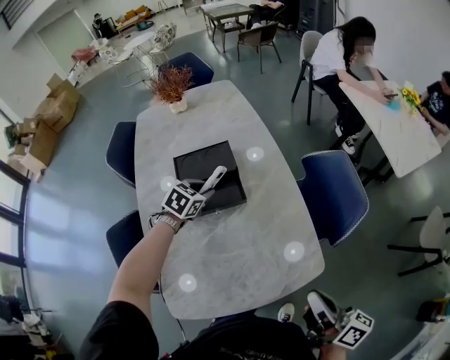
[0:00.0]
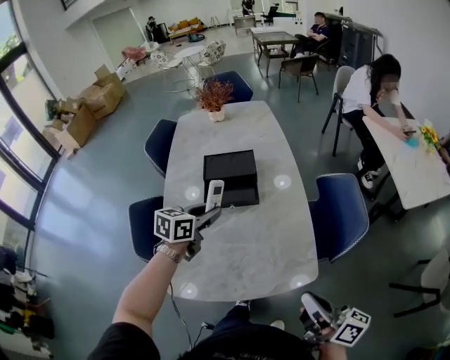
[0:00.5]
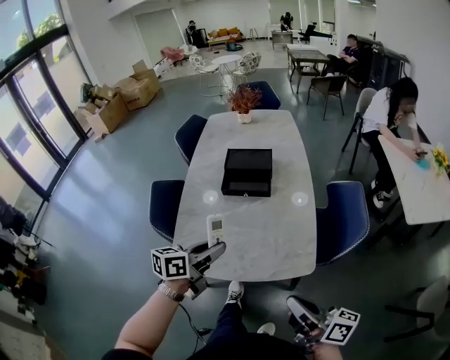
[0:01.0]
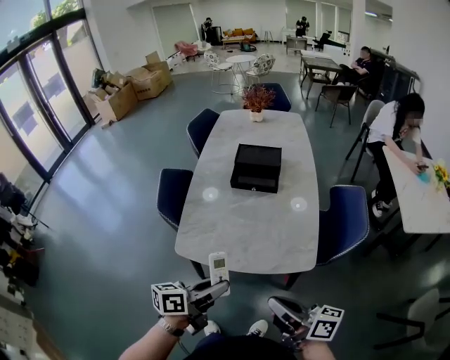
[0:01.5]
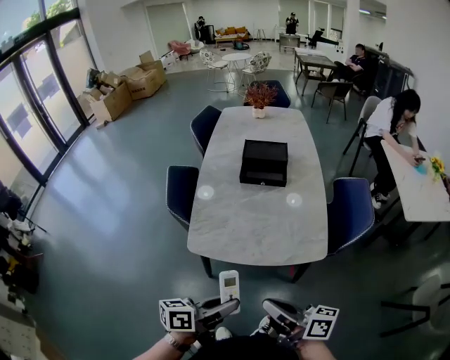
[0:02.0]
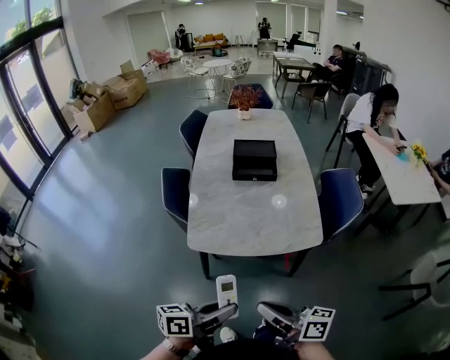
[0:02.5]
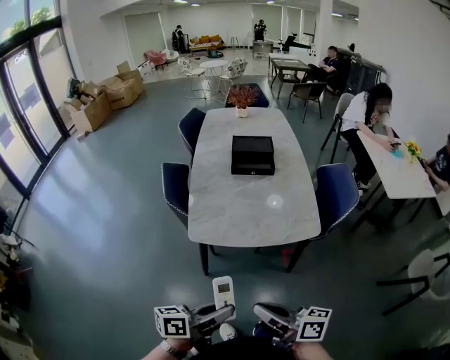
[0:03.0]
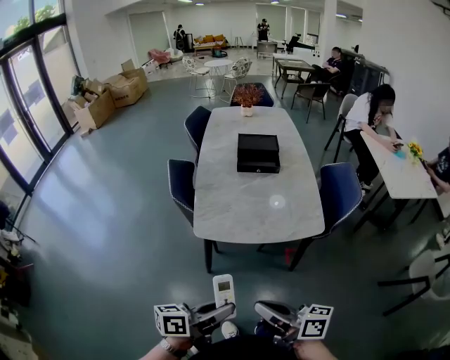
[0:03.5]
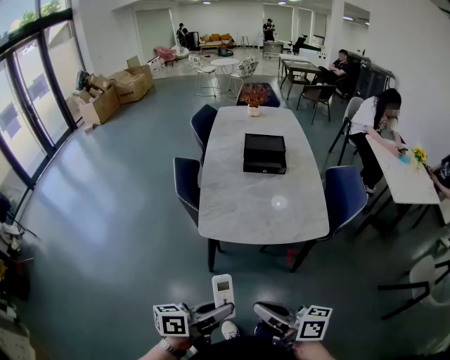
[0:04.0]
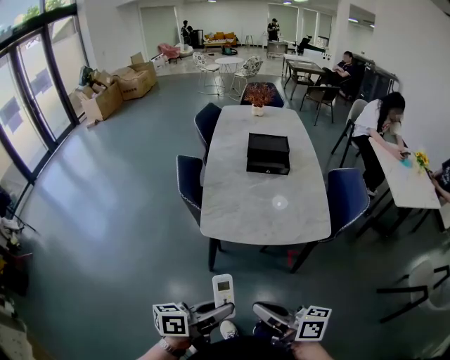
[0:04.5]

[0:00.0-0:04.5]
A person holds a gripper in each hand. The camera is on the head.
0:00.0 to 0:02.0: The right gripper changes place by roughly 25 cm, and turns by some 40 degrees; the left gripper ends up some 60 cm from where it was, and angles its fingers upward, by about 40 degrees.
0:02.0 to 0:04.5: The two grippers go about 15 cm backward and to the left.

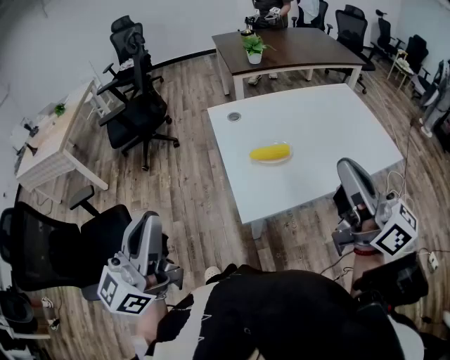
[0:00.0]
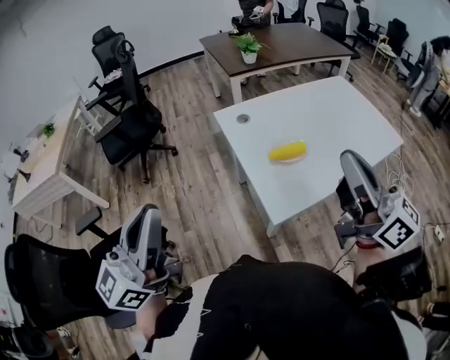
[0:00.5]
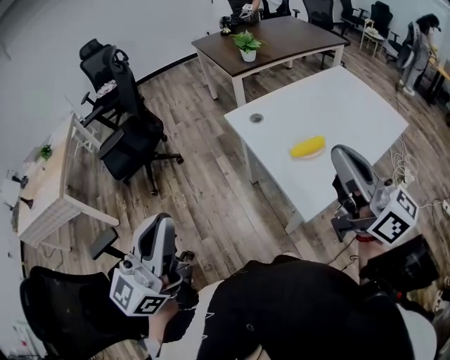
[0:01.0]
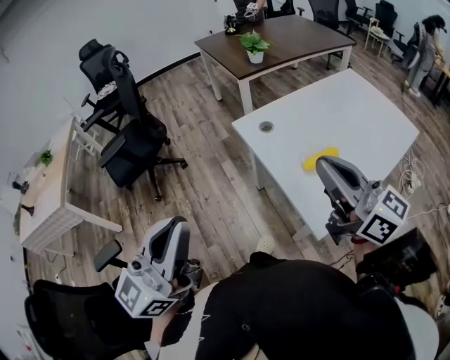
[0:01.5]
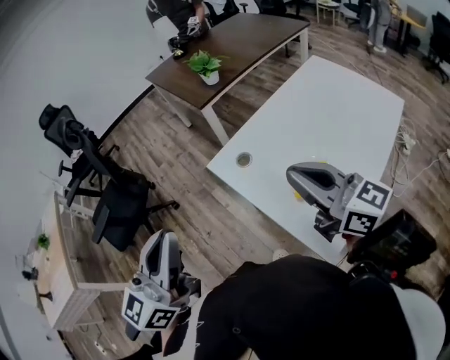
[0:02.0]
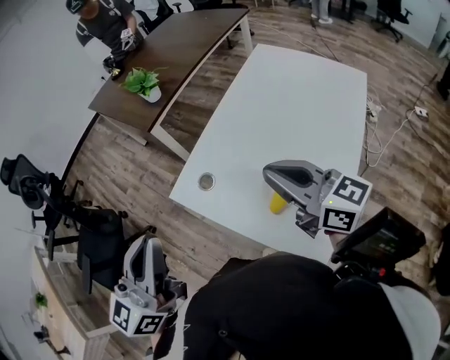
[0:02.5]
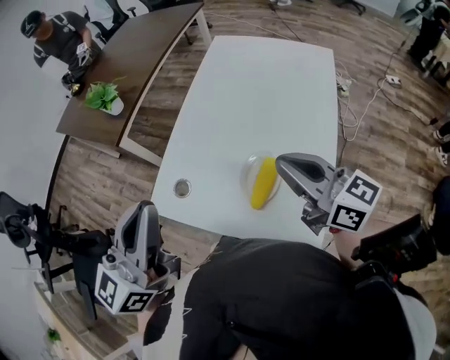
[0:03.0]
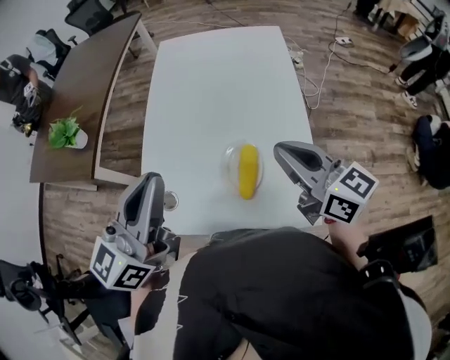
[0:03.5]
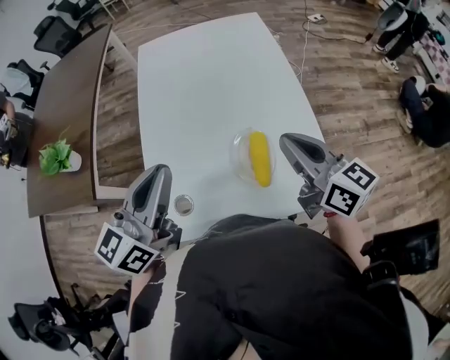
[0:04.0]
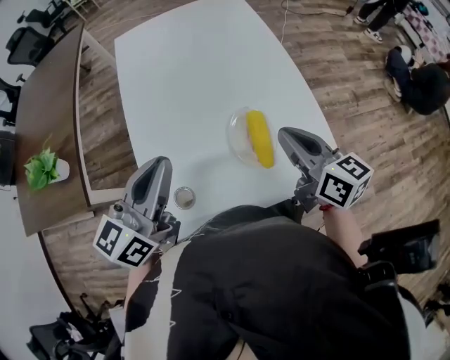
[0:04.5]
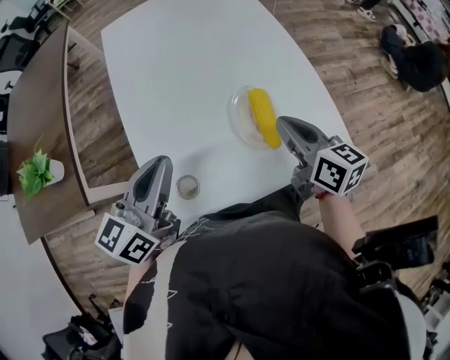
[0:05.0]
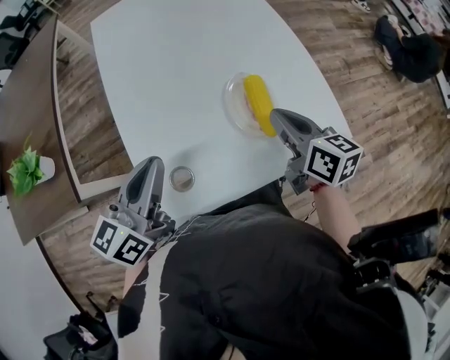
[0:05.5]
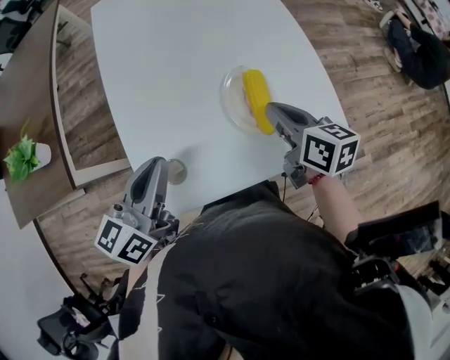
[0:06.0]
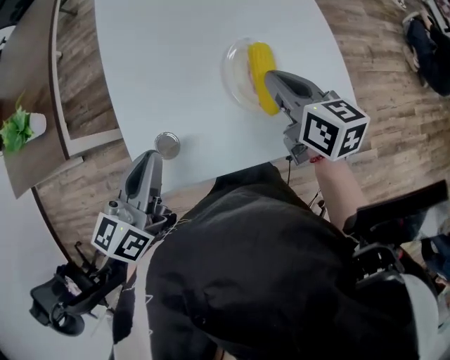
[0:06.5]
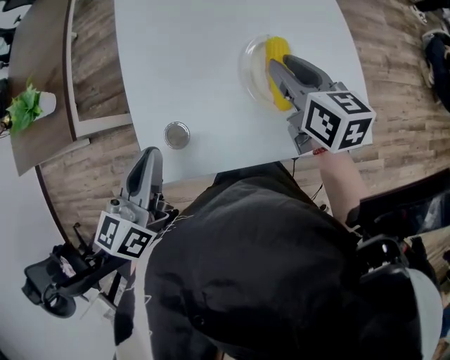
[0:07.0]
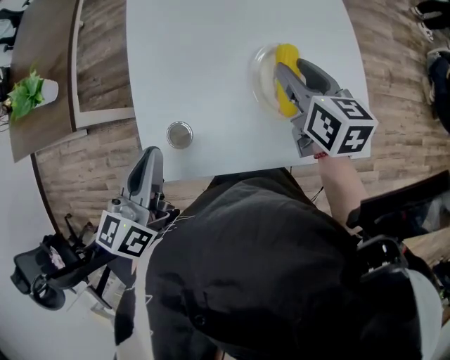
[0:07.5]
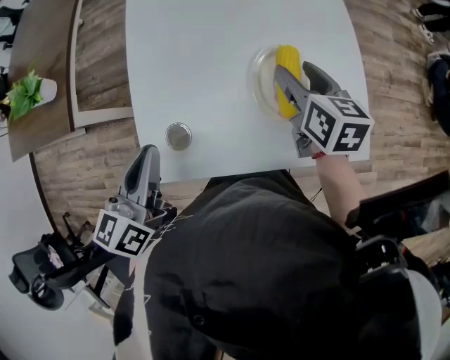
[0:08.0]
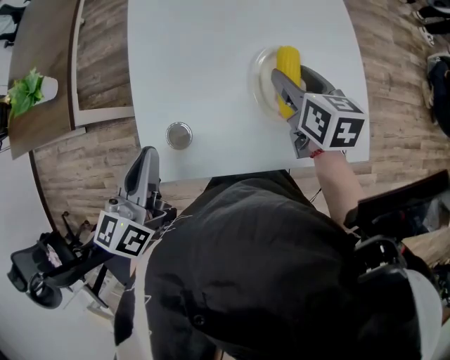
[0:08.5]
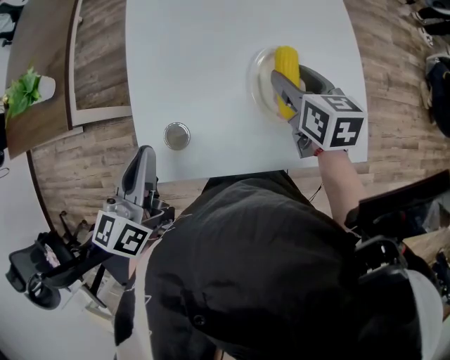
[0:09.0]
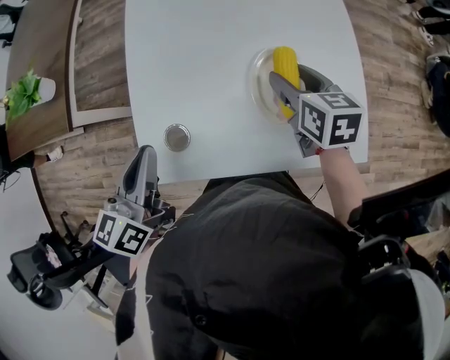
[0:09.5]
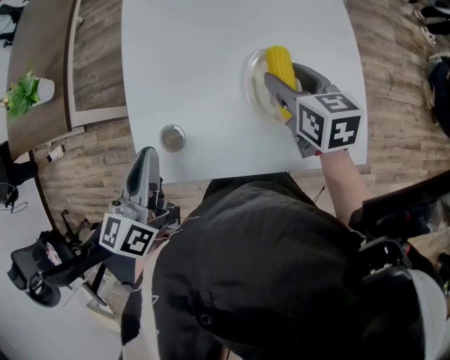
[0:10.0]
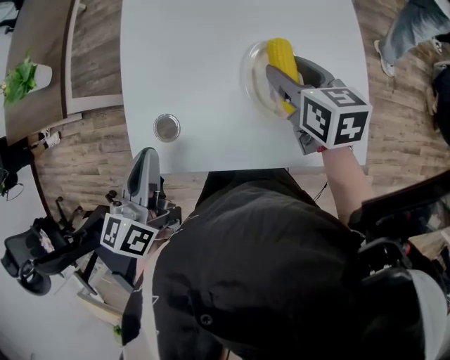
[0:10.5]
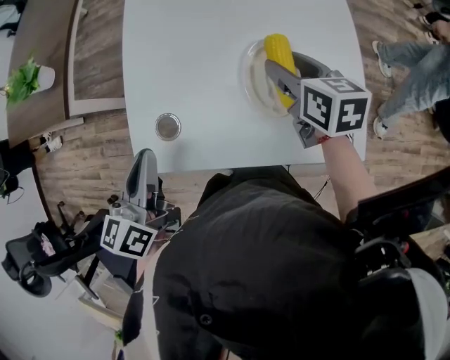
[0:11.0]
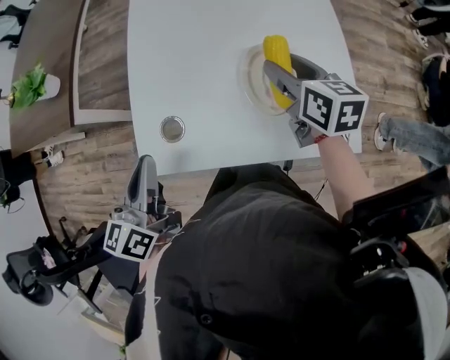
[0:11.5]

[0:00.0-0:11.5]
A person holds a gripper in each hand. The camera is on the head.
0:00.0 to 0:02.0: The two grippers go approximately 35 cm forward and to the left. The left gripper swivels some 20 degrees, while the right gripper turns by about 20 degrees.
0:02.0 to 0:04.0: The right gripper moves some 15 cm, and swivels about 70 degrees. Meanwhile the left gripper changes place by approximately 35 cm, and turns by about 70 degrees.
0:04.0 to 0:06.0: Both grippers move downward, about 15 cm. The right gripper turns by approximately 30 degrees.
0:06.0 to 0:07.5: The left gripper shifts by roughly 5 cm, and swivels about 20 degrees, while the right gripper shifts approximately 5 cm forward, and opens up.
0:07.5 to 0:09.5: The grippers stay close to where they were, moving slightly.
0:09.5 to 0:11.5: The left gripper shifts some 5 cm backward.

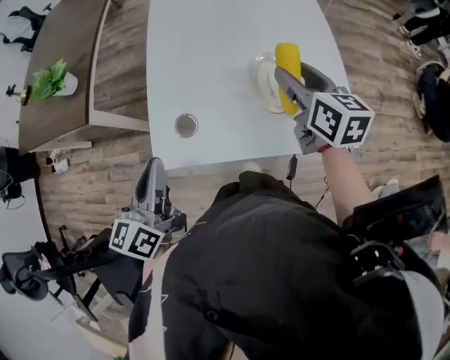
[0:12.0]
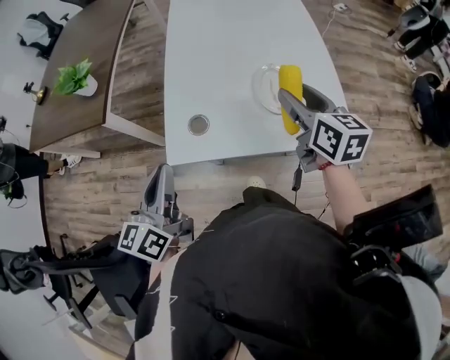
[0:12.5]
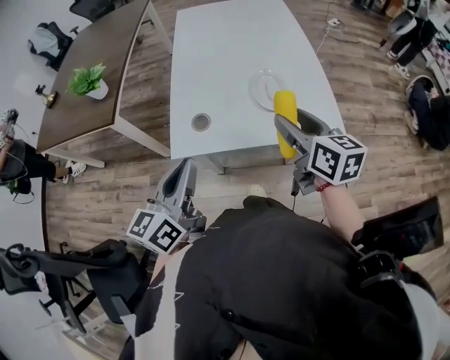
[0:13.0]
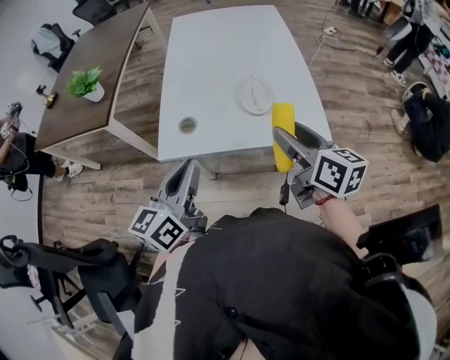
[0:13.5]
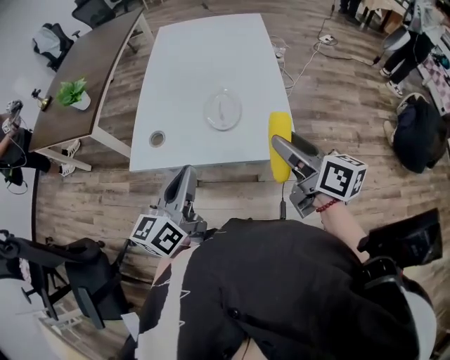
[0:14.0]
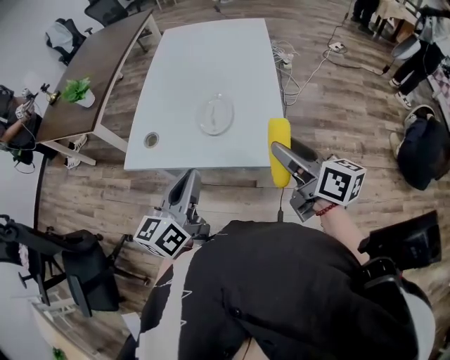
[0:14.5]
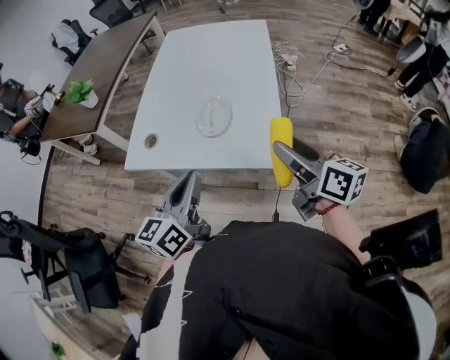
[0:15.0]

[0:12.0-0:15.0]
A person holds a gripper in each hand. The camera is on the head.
0:12.0 to 0:13.5: The right gripper is displaced backward by some 20 cm. The left gripper travels backward and to the right by some 15 cm.
0:13.5 to 0:15.0: Both grippers travel together to the right, approximately 20 cm.

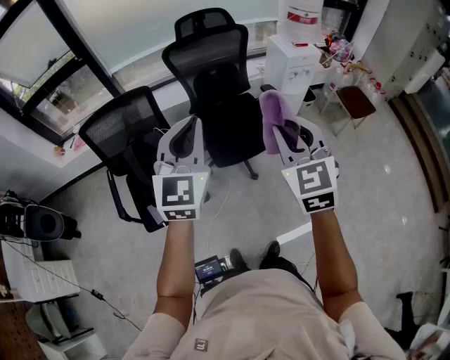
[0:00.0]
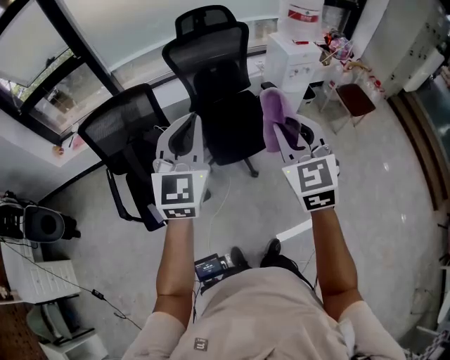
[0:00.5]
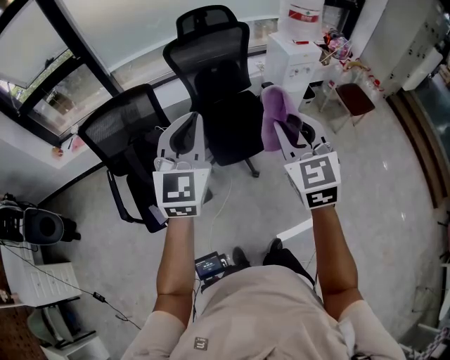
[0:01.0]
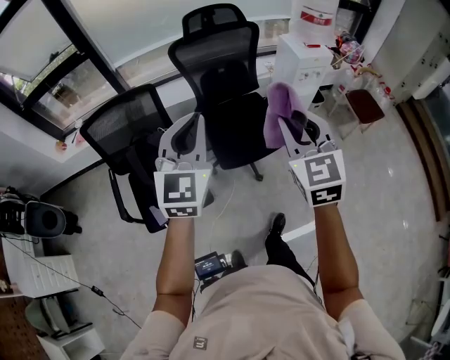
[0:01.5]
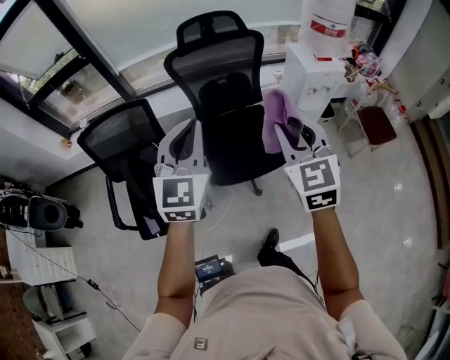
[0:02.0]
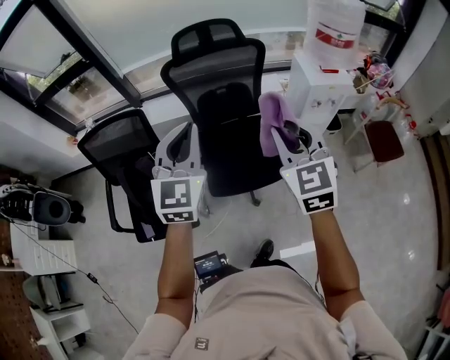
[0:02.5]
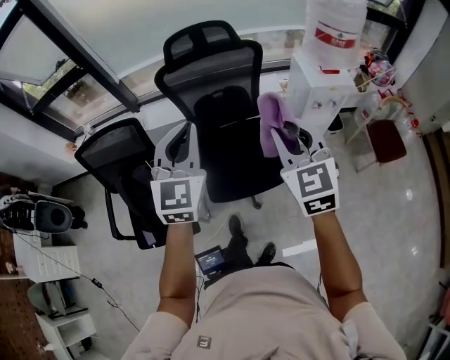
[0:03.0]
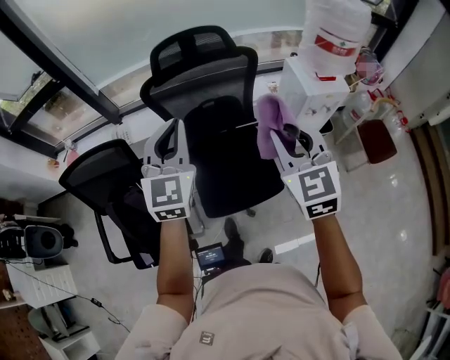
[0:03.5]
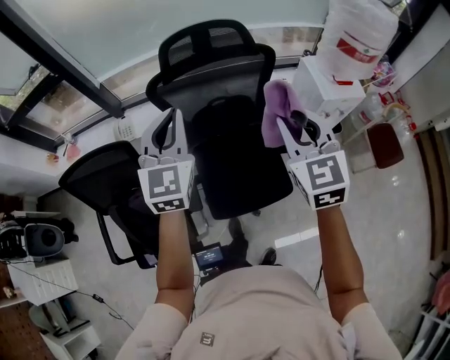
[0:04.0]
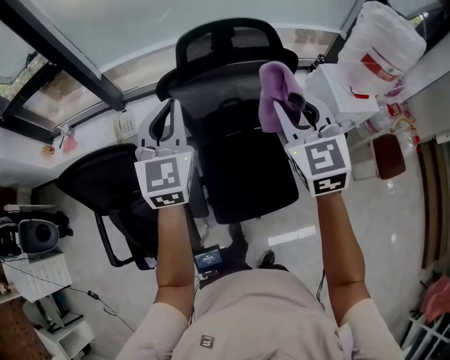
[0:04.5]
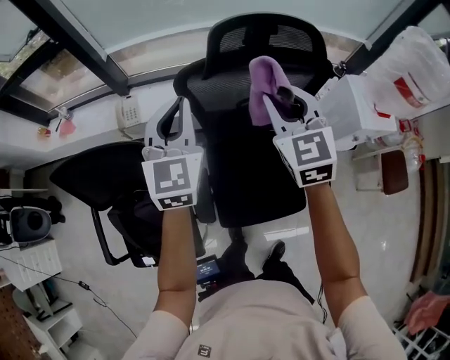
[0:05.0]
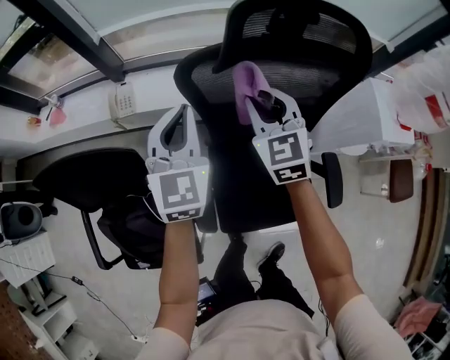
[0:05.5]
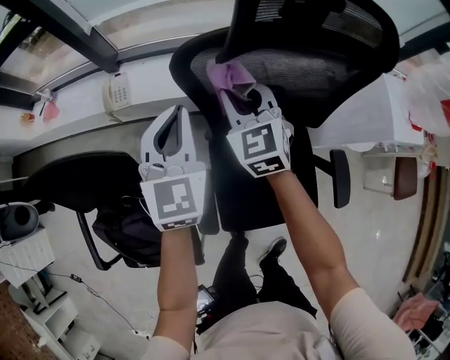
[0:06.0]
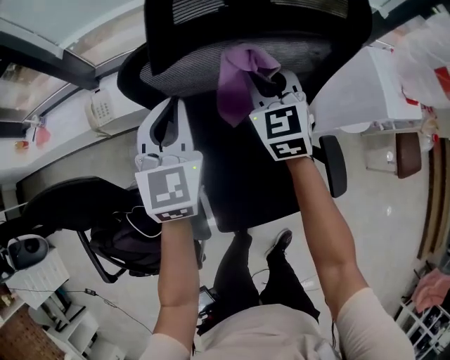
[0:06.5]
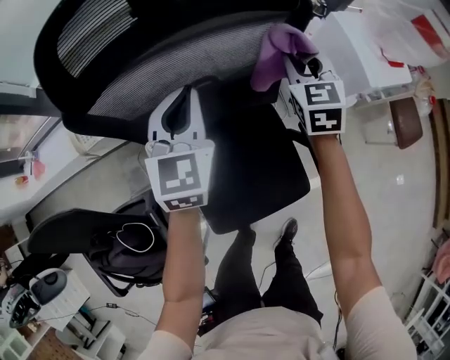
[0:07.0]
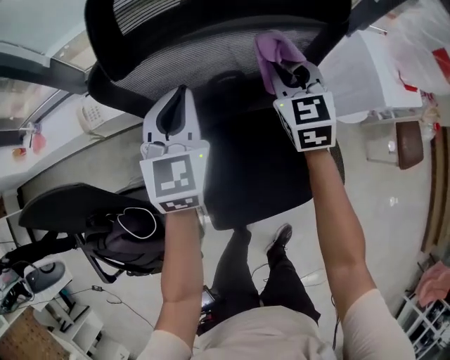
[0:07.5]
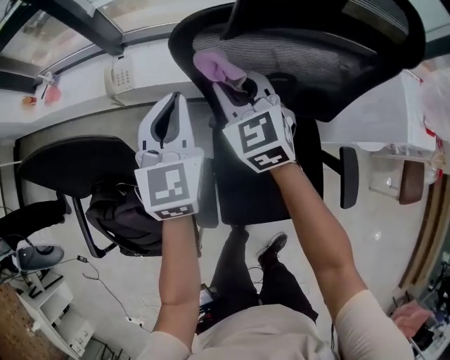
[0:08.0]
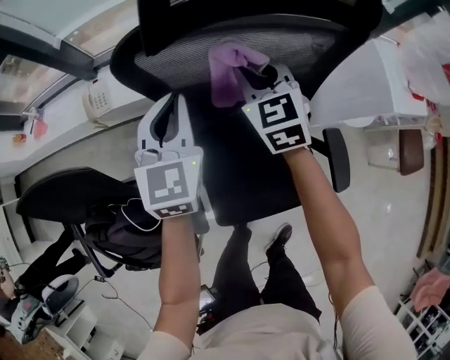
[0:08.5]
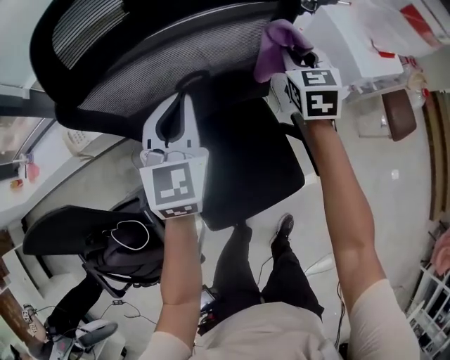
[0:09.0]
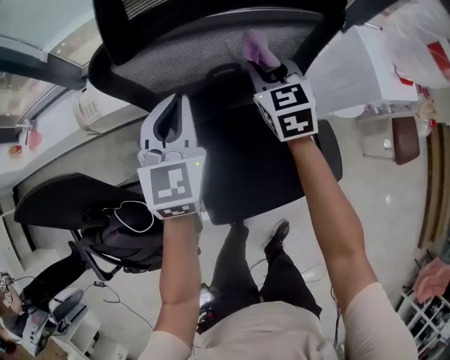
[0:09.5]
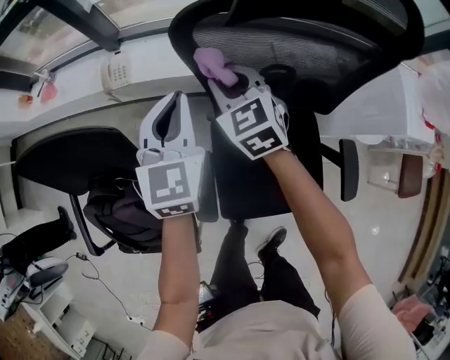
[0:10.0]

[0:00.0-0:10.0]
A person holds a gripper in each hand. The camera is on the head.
0:00.0 to 0:02.0: The two grippers go some 20 cm forward.
0:02.0 to 0:04.0: The grippers both shift forward by approximately 30 cm.
0:04.0 to 0:06.0: The left gripper is displaced downward, forward and to the left by about 35 cm. The right gripper moves forward, downward and to the left, about 50 cm.
